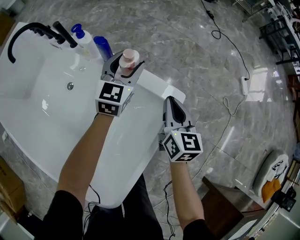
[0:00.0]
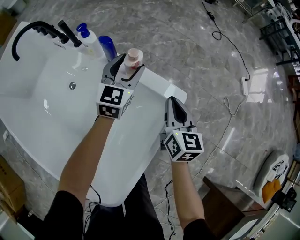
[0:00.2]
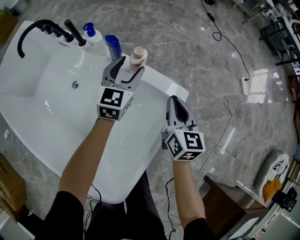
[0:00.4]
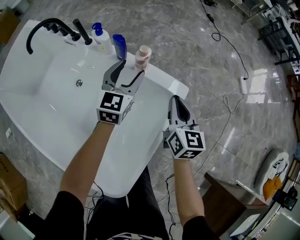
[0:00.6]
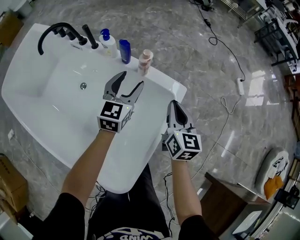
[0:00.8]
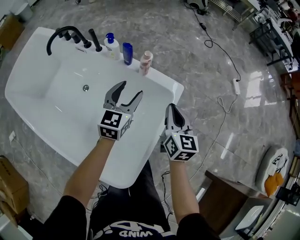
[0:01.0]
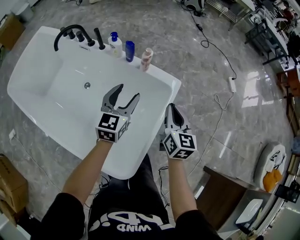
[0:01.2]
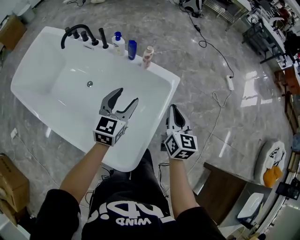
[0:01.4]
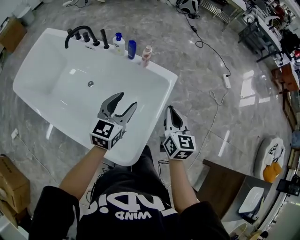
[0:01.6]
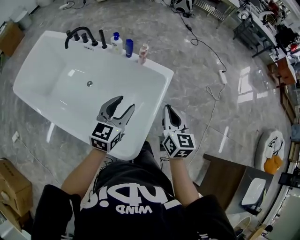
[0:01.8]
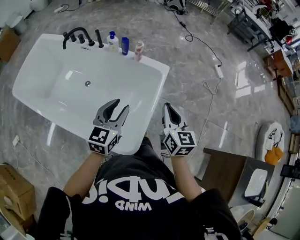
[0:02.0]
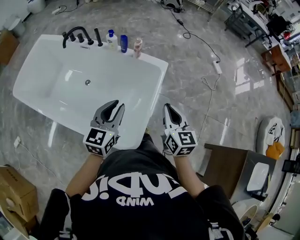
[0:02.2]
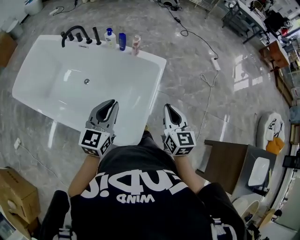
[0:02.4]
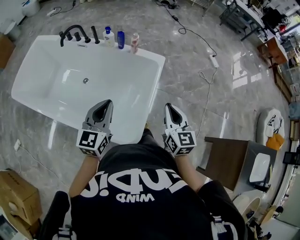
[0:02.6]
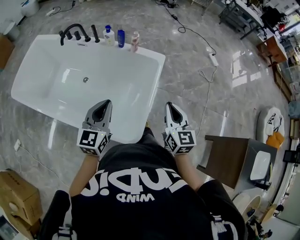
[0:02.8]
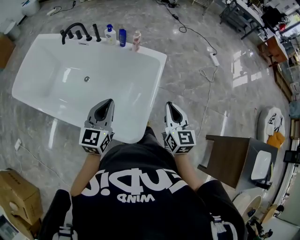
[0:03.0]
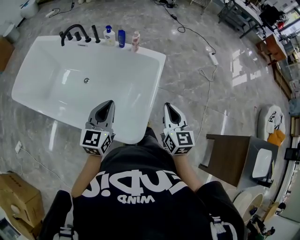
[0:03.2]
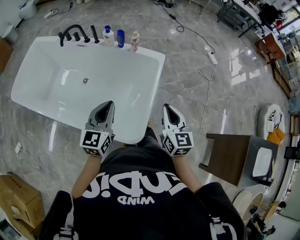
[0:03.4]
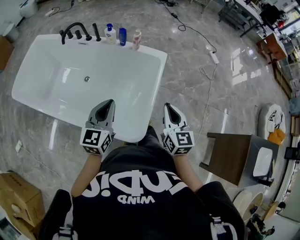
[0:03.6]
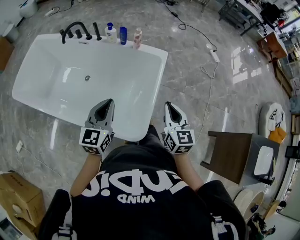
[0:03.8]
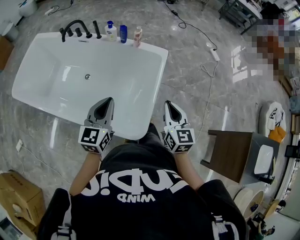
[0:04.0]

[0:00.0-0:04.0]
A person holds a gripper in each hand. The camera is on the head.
0:00.0 to 0:01.4: The two grippers go some 35 cm backward and upward.
0:01.4 to 0:02.6: The left gripper goes about 20 cm backward and upward, and closes. The right gripper moves backward, approximately 20 cm.
0:02.6 to 0:04.0: The grippers make only small movements.

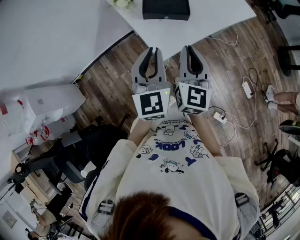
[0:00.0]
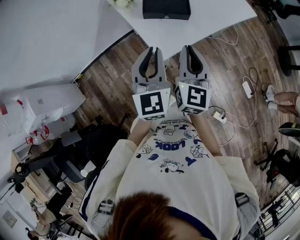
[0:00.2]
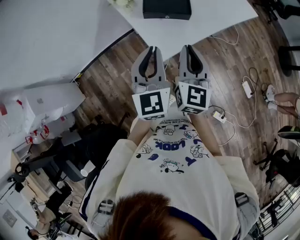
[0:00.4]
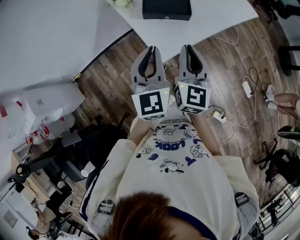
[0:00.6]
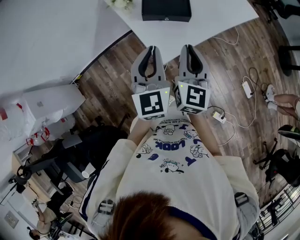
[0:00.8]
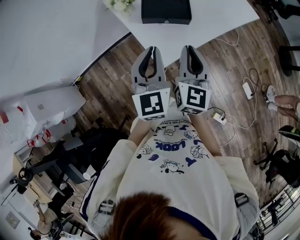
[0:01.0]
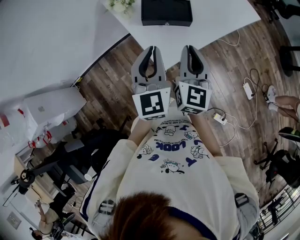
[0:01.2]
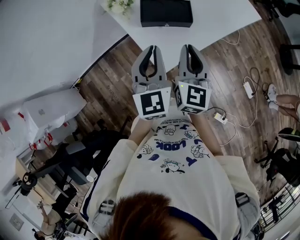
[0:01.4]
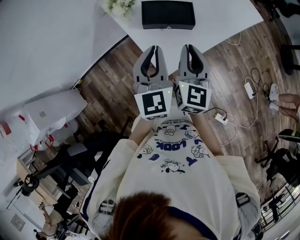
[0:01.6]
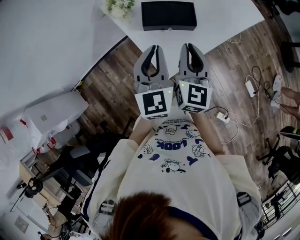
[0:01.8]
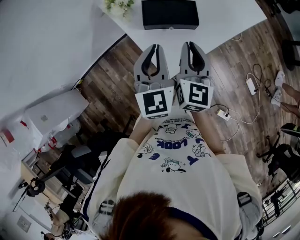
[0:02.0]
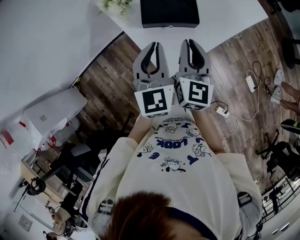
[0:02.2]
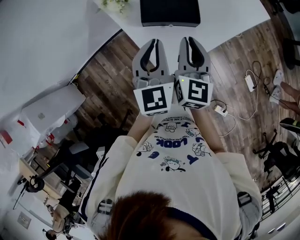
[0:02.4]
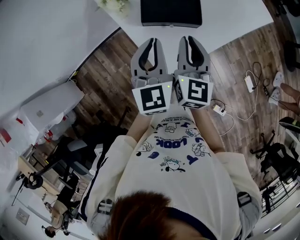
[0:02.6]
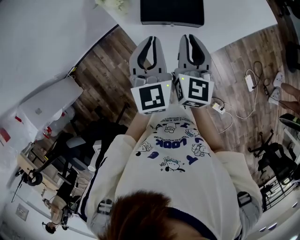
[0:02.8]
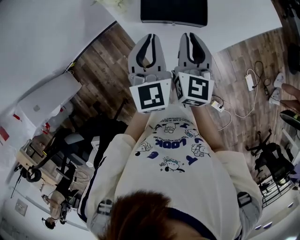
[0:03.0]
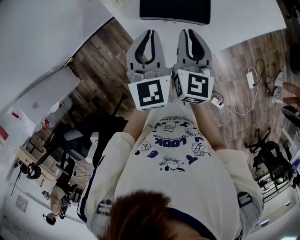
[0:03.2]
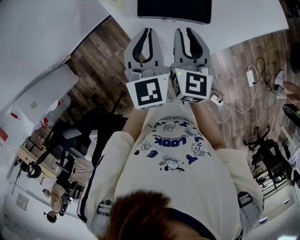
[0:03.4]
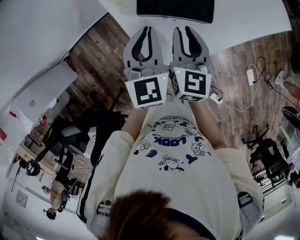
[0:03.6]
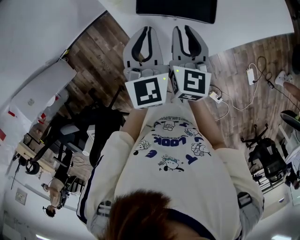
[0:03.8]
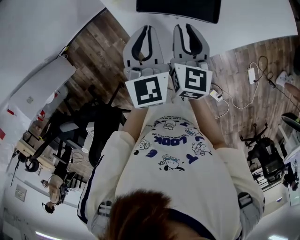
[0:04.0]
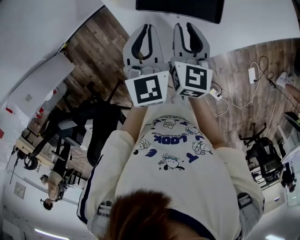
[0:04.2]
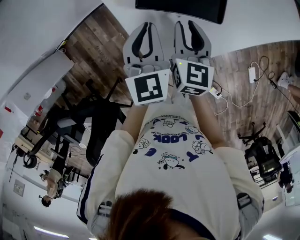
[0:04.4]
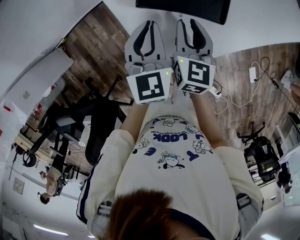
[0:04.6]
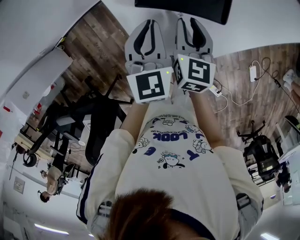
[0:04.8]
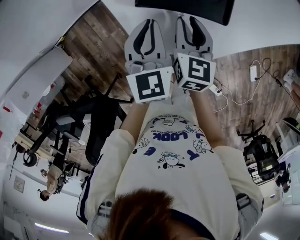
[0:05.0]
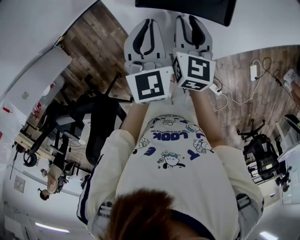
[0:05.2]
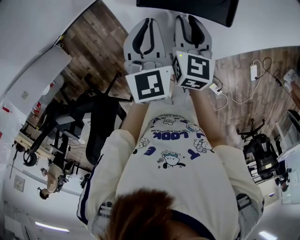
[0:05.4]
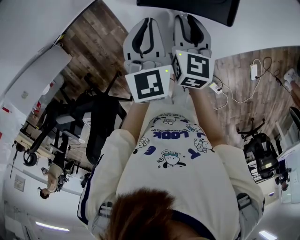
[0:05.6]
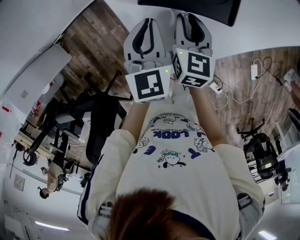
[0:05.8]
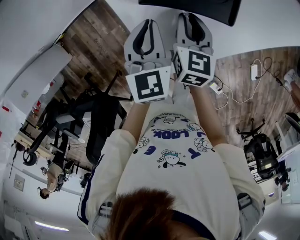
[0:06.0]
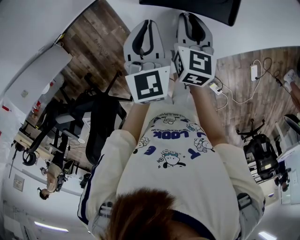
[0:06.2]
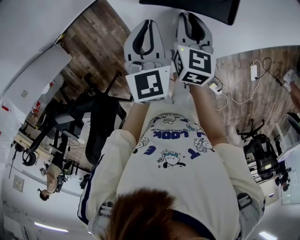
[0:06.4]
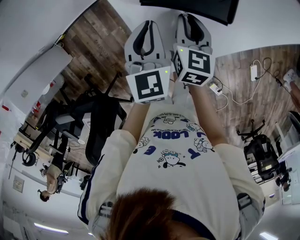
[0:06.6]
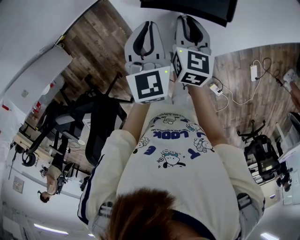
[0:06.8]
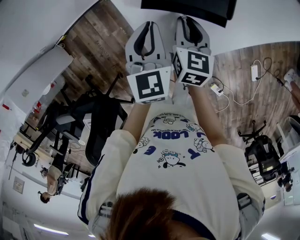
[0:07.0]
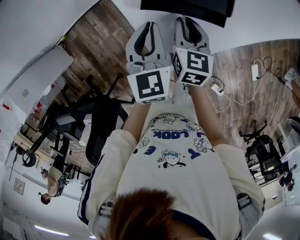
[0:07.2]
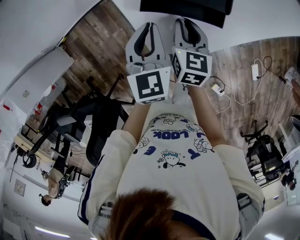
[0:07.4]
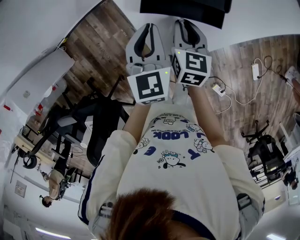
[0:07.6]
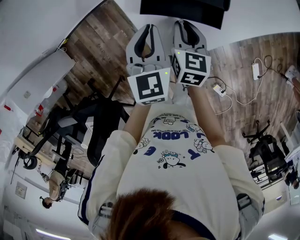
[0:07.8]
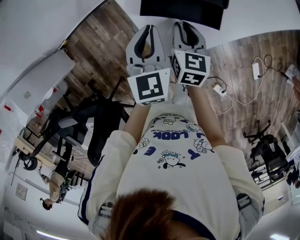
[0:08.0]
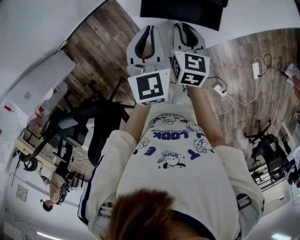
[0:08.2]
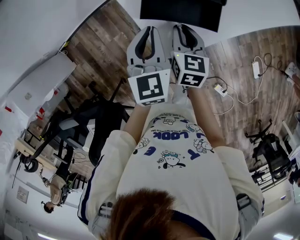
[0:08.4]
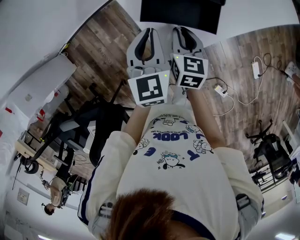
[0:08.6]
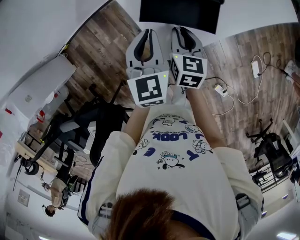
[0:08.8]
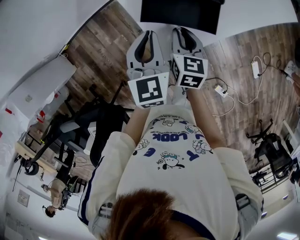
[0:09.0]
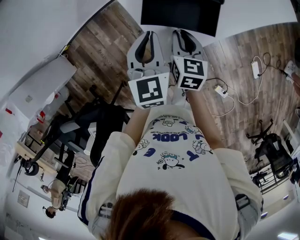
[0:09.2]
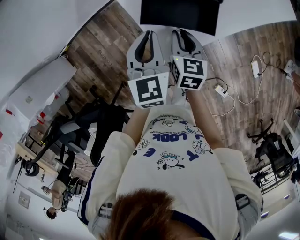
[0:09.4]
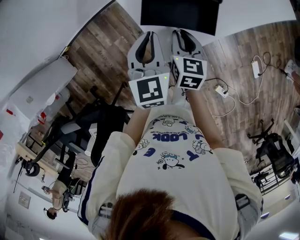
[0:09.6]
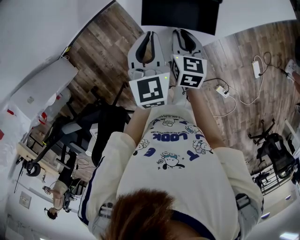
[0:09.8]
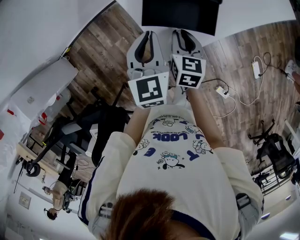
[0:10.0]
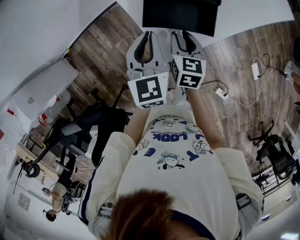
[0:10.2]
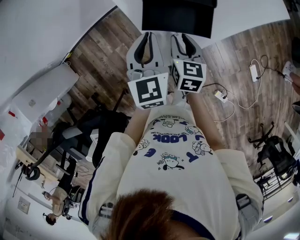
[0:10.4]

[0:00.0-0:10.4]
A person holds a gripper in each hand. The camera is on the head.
0:00.0 to 0:01.4: The two grippers go approximately 10 cm forward.
0:01.4 to 0:03.0: The grippers both shift forward and downward by about 15 cm.
0:03.0 to 0:04.4: The grippers both shift downward by about 10 cm.
0:04.4 to 0:06.0: The right gripper shifts by some 5 cm.
0:06.0 to 0:07.4: The grippers make only small movements.
0:07.4 to 0:09.0: The two grippers go approximately 5 cm backward.
0:09.0 to 0:10.4: There are only small adjustments of the grippers.

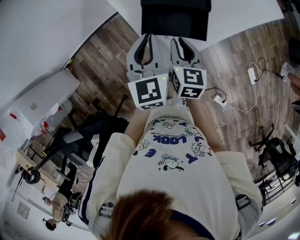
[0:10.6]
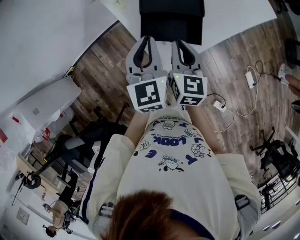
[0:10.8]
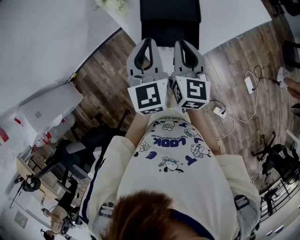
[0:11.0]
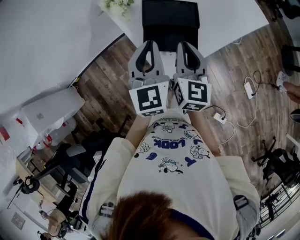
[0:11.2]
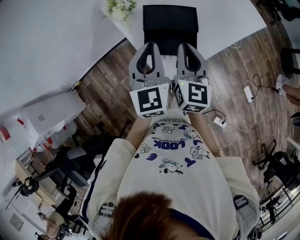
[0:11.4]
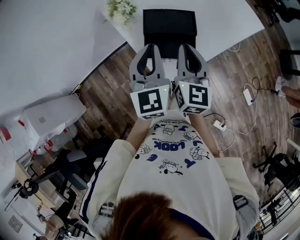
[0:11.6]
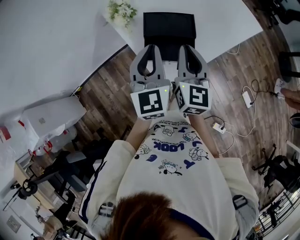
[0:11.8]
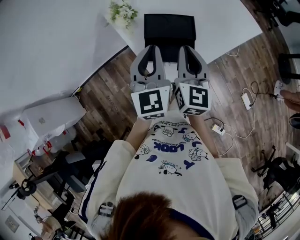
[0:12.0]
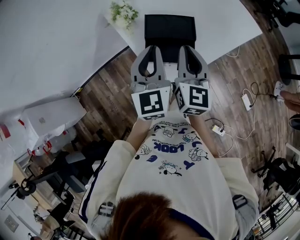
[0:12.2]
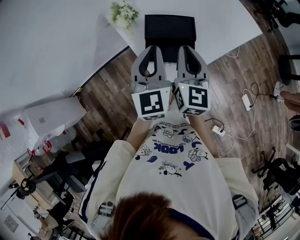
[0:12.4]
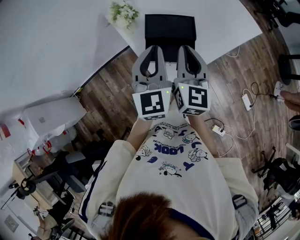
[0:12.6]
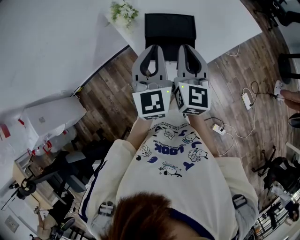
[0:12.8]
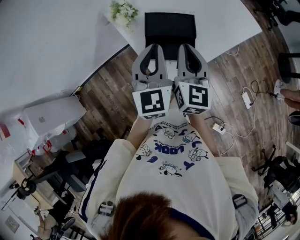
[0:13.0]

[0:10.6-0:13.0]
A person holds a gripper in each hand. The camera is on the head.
0:10.6 to 0:11.8: The two grippers go some 15 cm upward. The right gripper swivels about 30 degrees.
0:11.8 to 0:13.0: The grippers stay close to where they were, moving slightly.

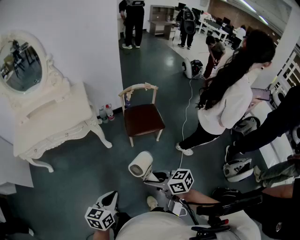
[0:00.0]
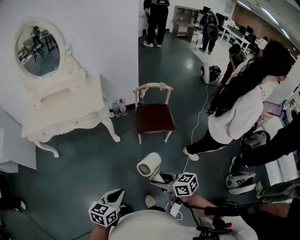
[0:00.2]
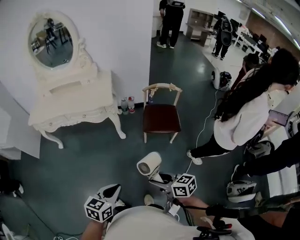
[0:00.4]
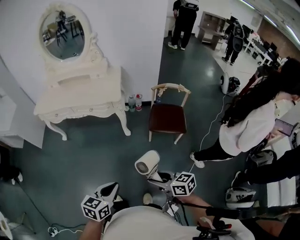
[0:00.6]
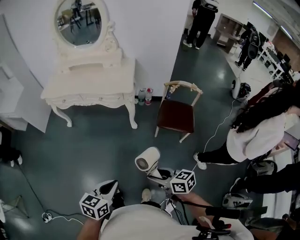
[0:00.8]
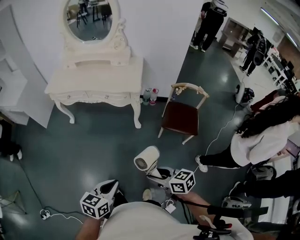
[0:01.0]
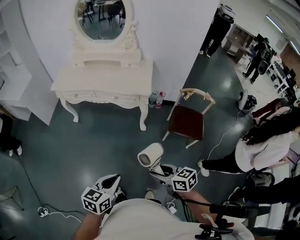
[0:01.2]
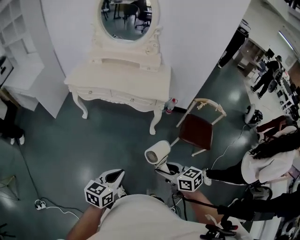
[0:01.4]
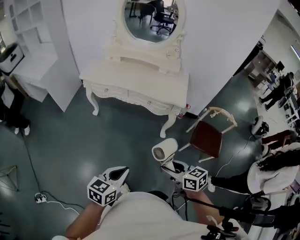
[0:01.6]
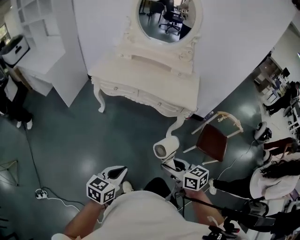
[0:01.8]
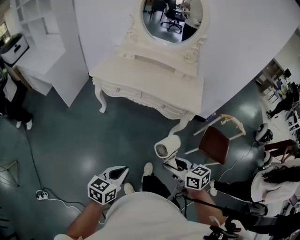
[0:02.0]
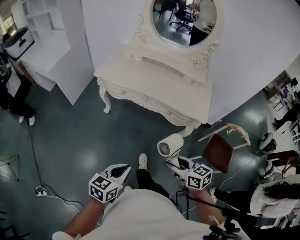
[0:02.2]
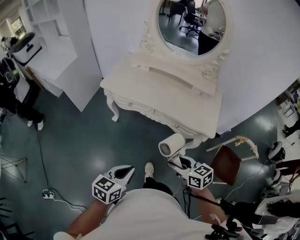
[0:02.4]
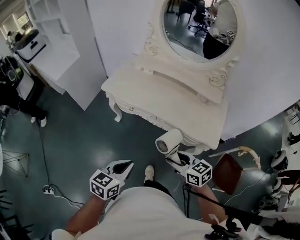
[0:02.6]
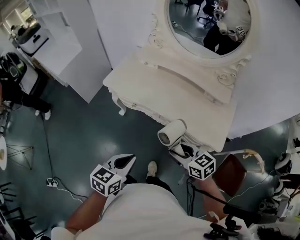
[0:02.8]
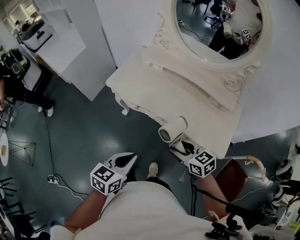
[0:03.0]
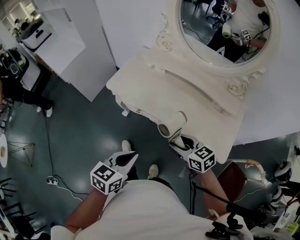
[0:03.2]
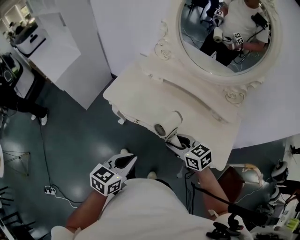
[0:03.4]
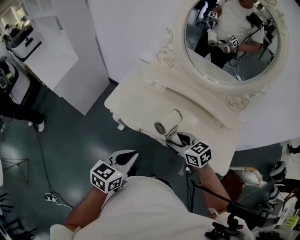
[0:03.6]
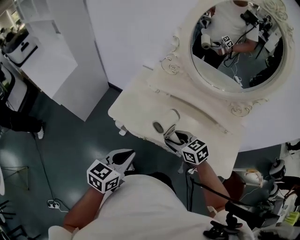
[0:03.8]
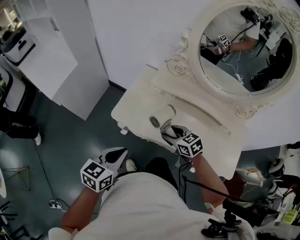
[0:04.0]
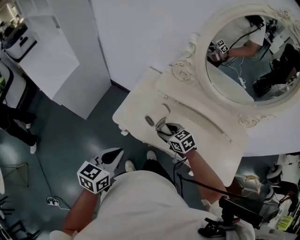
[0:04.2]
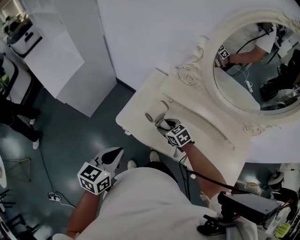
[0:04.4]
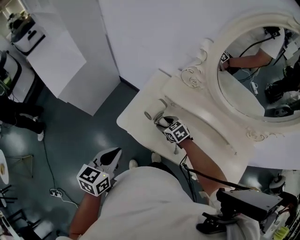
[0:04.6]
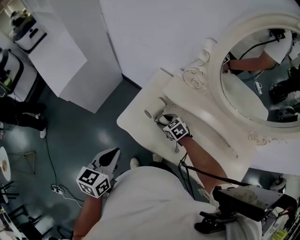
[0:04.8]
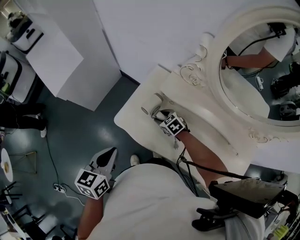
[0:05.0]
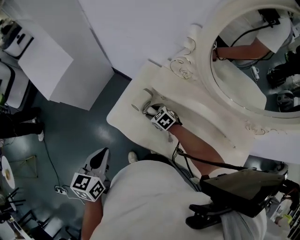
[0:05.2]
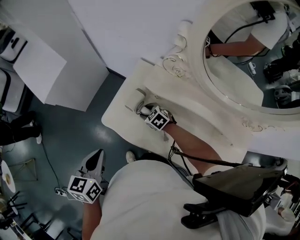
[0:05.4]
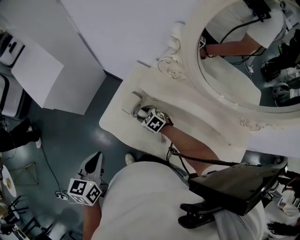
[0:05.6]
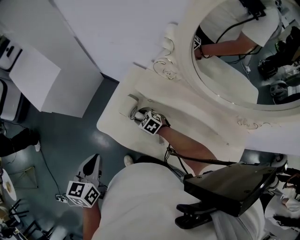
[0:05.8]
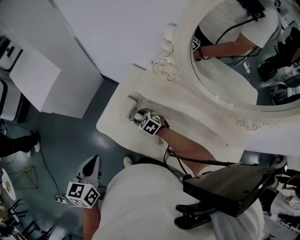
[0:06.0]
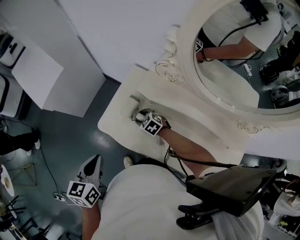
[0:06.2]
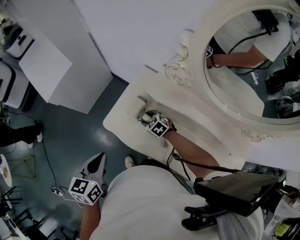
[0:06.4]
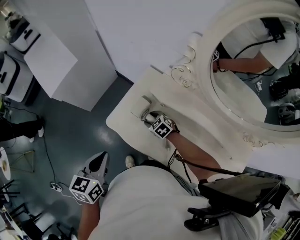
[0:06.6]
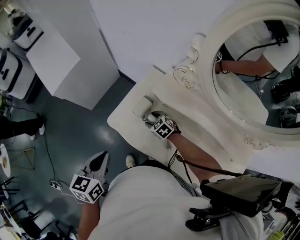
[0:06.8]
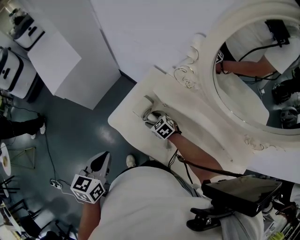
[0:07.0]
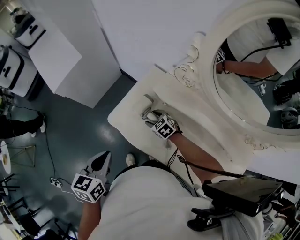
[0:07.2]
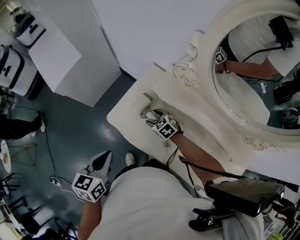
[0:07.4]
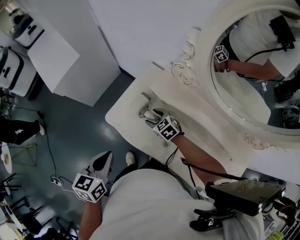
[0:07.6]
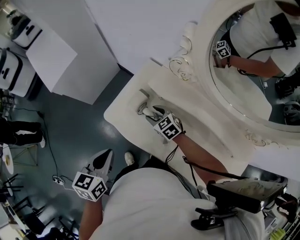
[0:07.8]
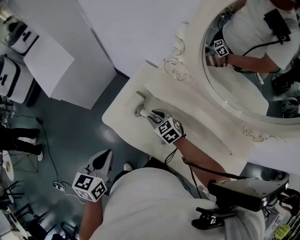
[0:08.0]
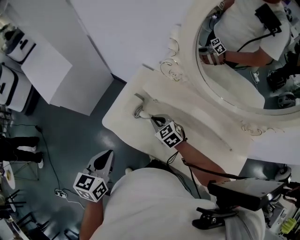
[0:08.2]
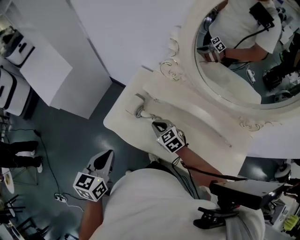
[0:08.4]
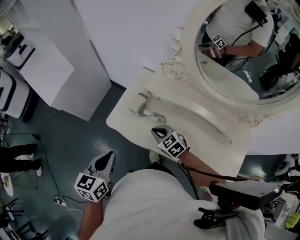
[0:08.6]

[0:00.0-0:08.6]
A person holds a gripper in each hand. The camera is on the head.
0:00.0 to 0:01.4: The right gripper goes about 20 cm to the left and forward. Meanwhile the left gripper moves to the left, some 20 cm.
0:01.4 to 0:02.8: Both grippers are carried forward, some 50 cm. The right gripper changes its angle by about 20 degrees.
0:02.8 to 0:04.4: The pair of grippers is taken forward and to the left, roughly 50 cm. The right gripper swivels some 20 degrees.
0:04.4 to 0:05.8: The right gripper moves forward and downward, about 10 cm.
0:05.8 to 0:07.2: The grippers stay close to where they were, moving slightly.
0:07.2 to 0:08.6: The right gripper is displaced backward and upward by some 15 cm, and closes up.
